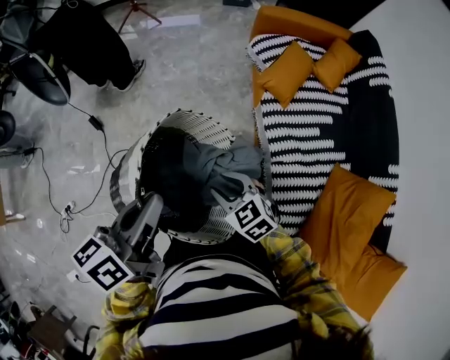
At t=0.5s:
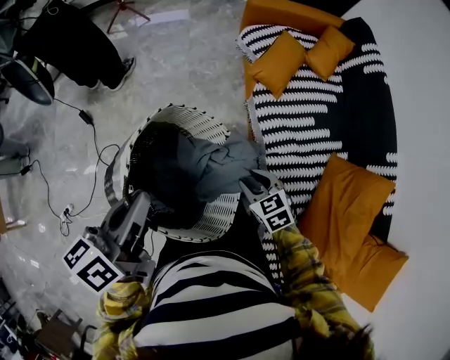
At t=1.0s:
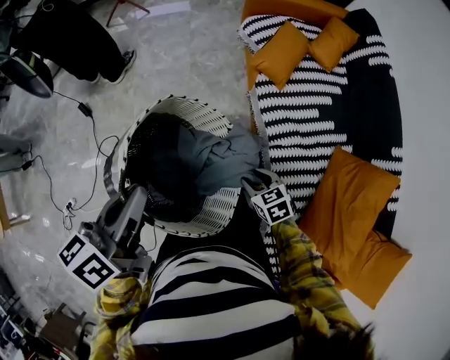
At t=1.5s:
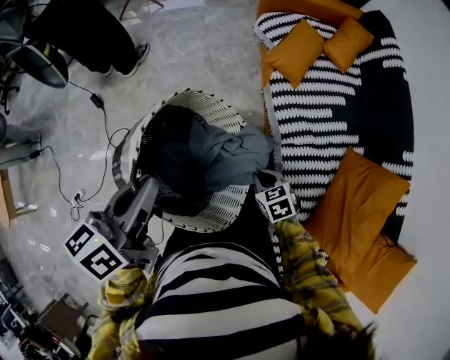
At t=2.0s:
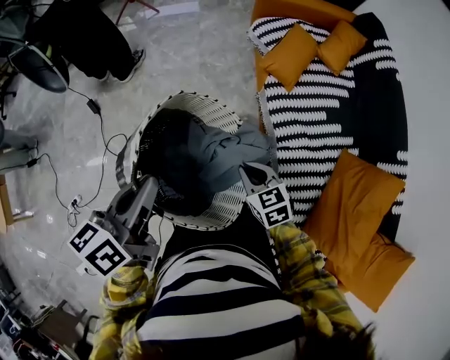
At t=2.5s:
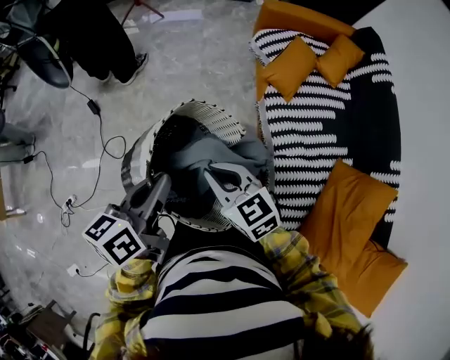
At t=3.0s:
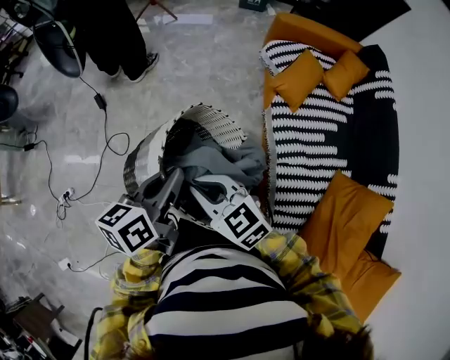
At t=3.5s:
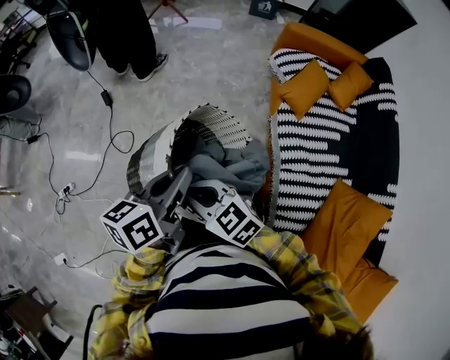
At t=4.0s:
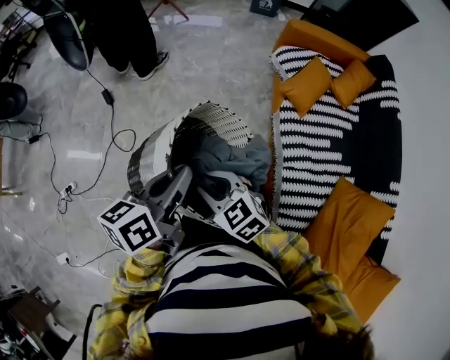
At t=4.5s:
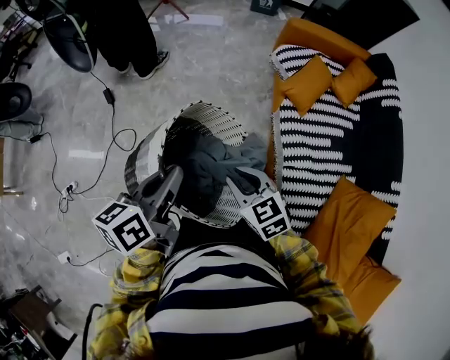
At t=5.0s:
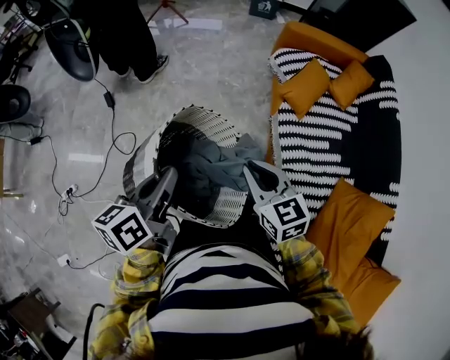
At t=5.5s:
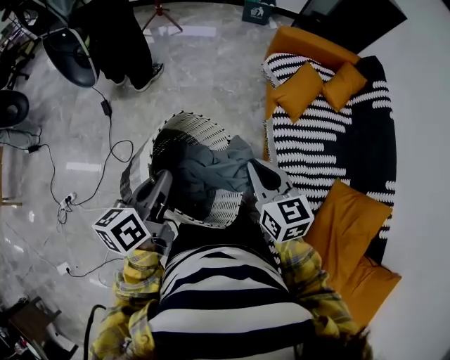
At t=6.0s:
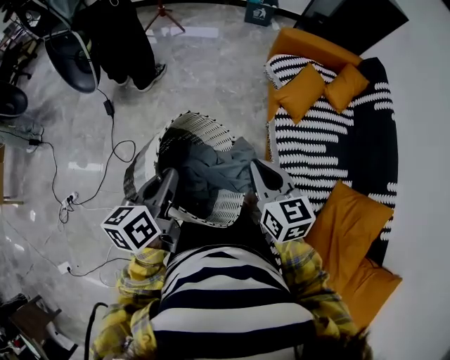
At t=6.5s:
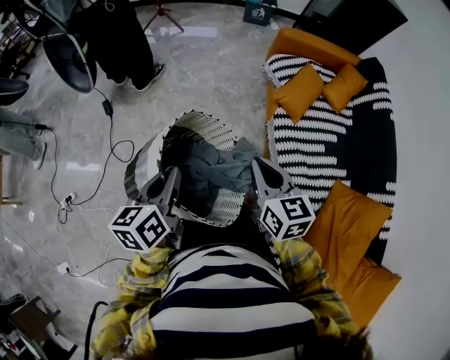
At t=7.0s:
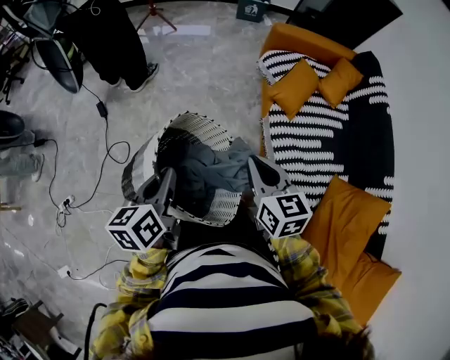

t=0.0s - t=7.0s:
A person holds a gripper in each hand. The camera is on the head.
t=0.0s - t=2.0s: The right gripper goes some 10 cm to the right.
t=2.0s - t=3.5s: The right gripper is displaced to the left and upward by approximately 25 cm, and swivels about 40 degrees.
t=3.5s - t=5.0s: The right gripper moves to the right, some 15 cm, and swivels approximately 30 degrees.
t=5.0s - t=7.0s: The grippers make only small movements.

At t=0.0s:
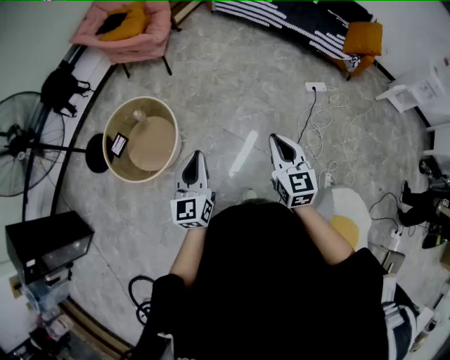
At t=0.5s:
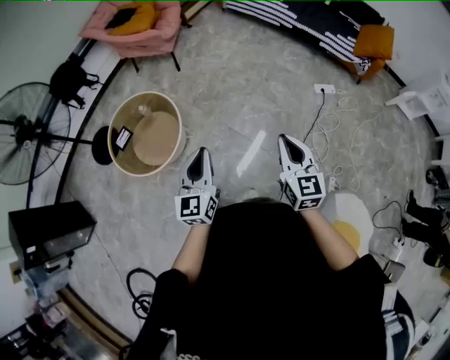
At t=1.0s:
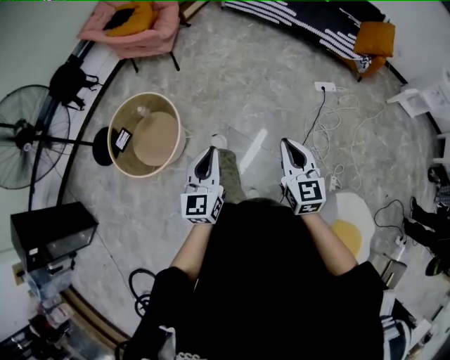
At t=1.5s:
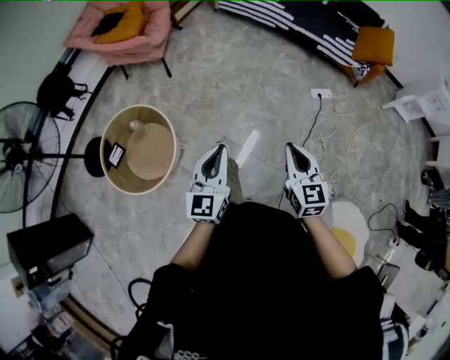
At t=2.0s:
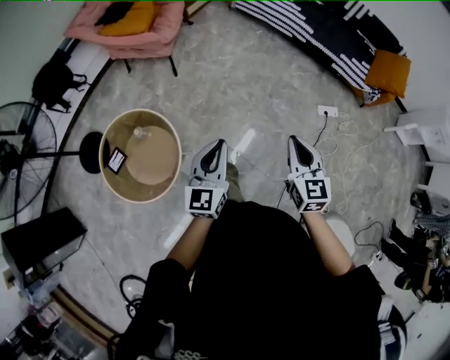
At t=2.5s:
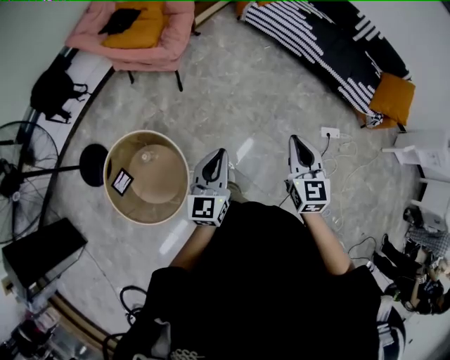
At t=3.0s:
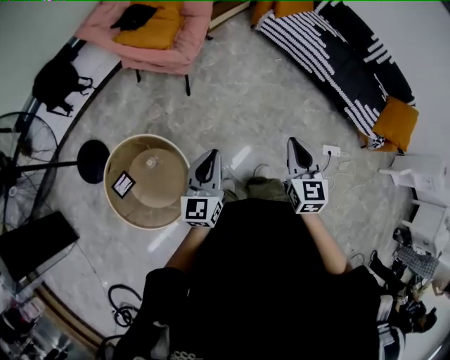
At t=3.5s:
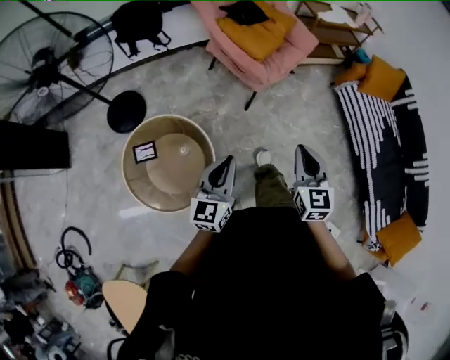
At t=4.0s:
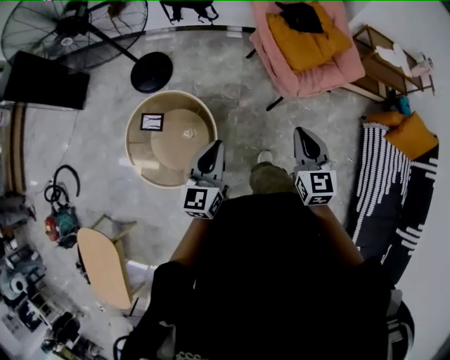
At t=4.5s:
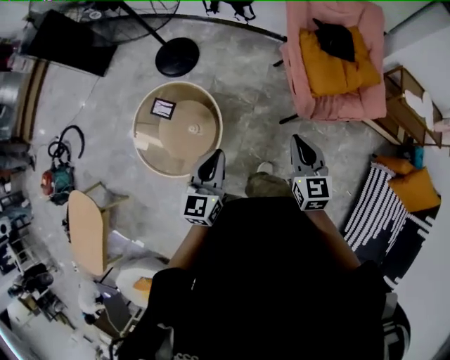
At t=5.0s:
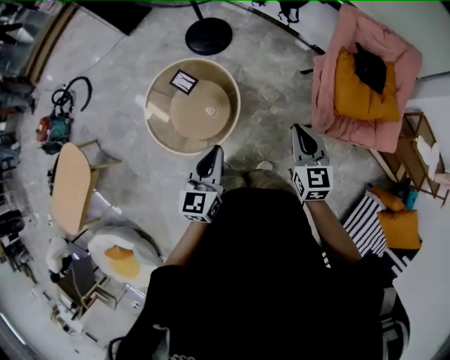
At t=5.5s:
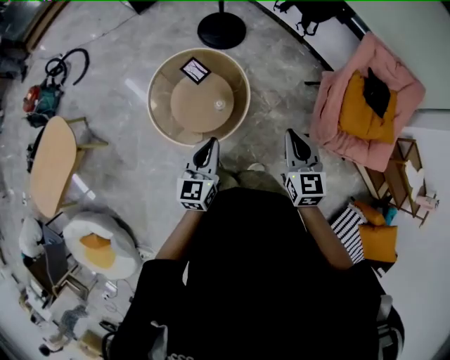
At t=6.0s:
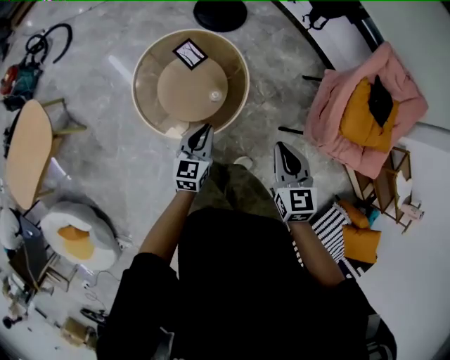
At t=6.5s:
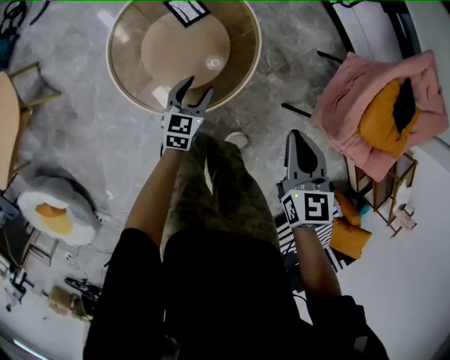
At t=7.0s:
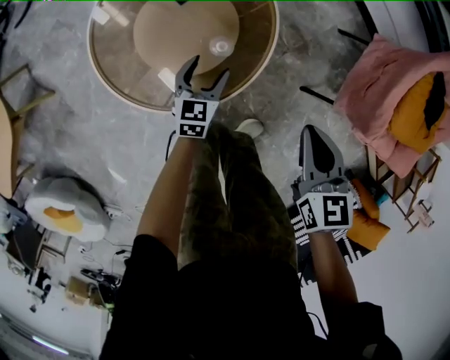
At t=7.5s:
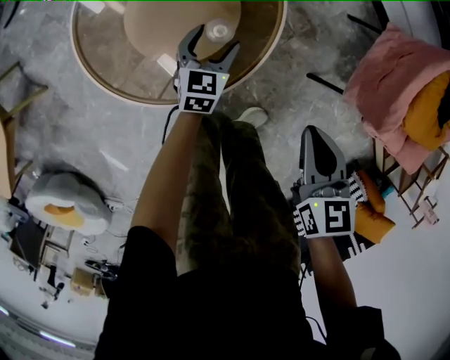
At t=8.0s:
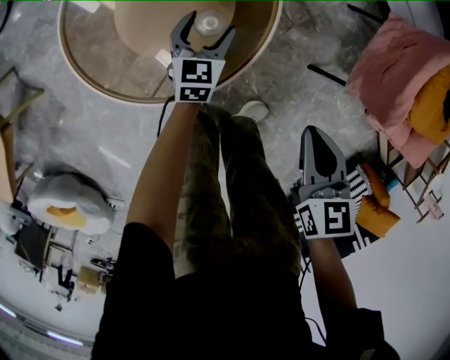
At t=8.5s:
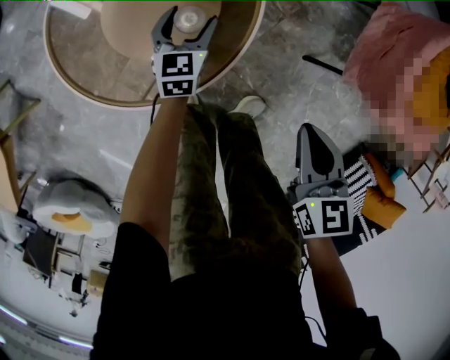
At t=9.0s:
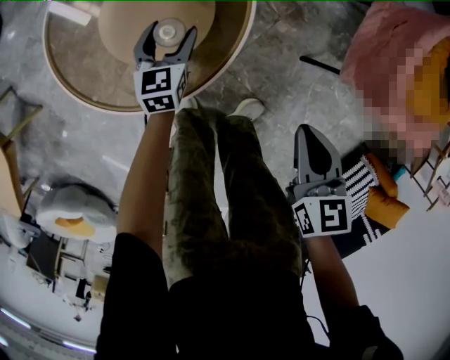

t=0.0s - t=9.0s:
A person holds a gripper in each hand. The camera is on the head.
t=0.0s - t=2.0s: The two grippers go roughly 30 cm forward.
t=2.0s - t=4.5s: The pair of grippers is taken about 70 cm. The right gripper swivels some 80 degrees, while the left gripper turns by approximately 70 degrees.
t=4.5s - t=7.0s: Both grippers travel together downward and to the left, some 50 cm. The right gripper turns by approximately 30 degrees; the left gripper changes its angle by about 30 degrees, and opens its fingers.
t=7.0s - t=9.0s: The left gripper heads forward and downward, covering about 10 cm. The right gripper goes about 10 cm downward and to the right.

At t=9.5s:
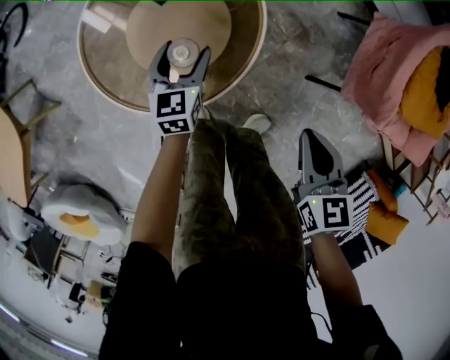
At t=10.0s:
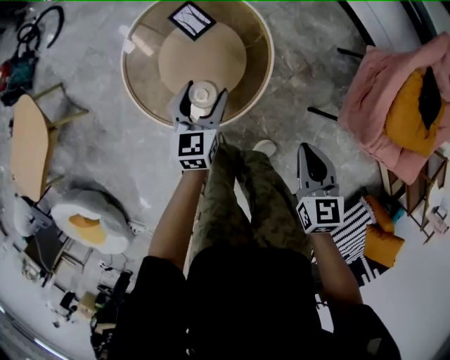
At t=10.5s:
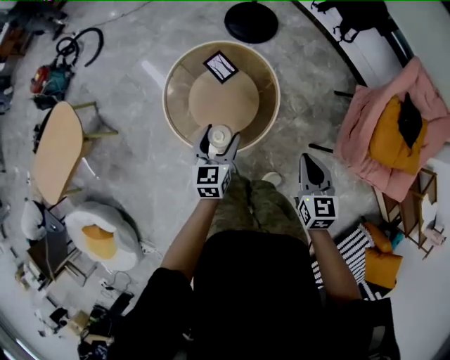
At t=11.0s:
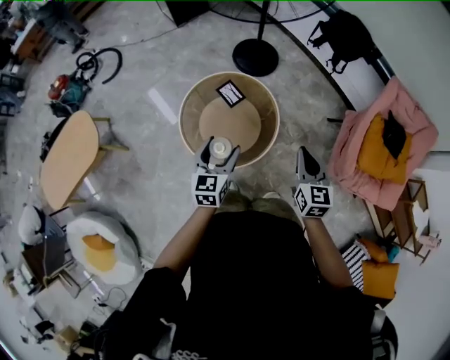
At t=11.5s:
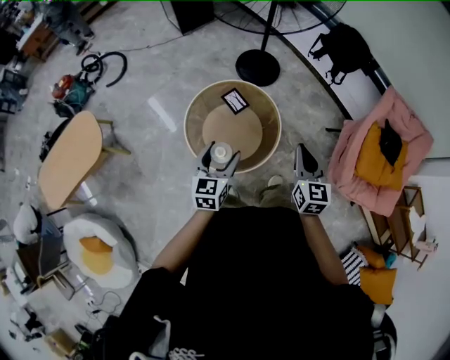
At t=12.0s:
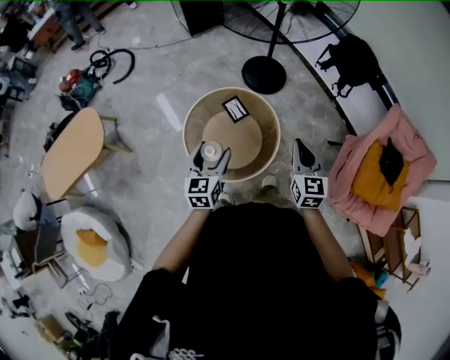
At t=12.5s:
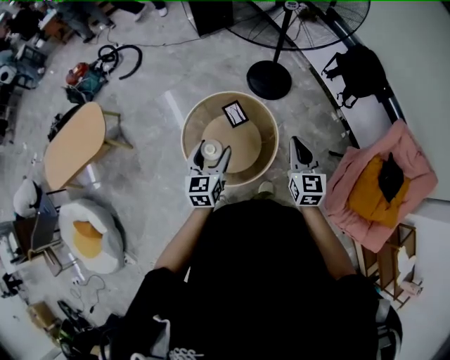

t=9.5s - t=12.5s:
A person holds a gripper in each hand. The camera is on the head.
t=9.5s - t=11.0s: The two grippers go roughly 40 cm upward. The right gripper changes its angle by about 20 degrees.
t=11.0s - t=12.5s: The right gripper travels forward by approximately 15 cm, while the left gripper travels forward by some 5 cm.

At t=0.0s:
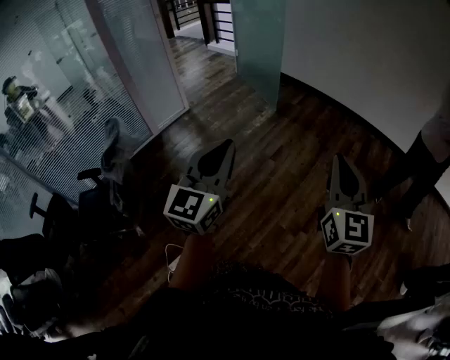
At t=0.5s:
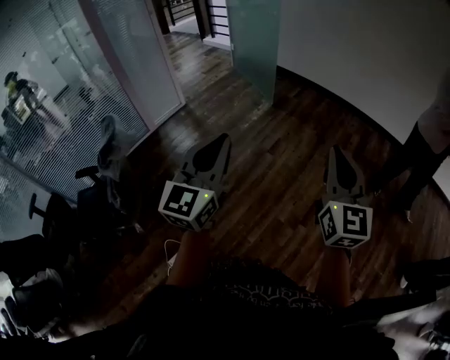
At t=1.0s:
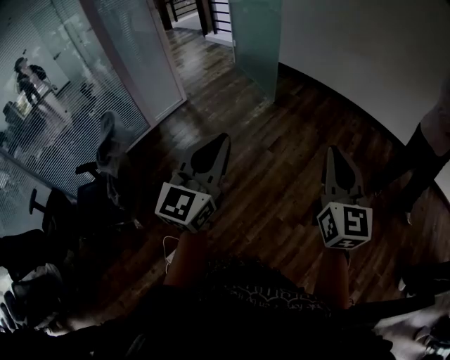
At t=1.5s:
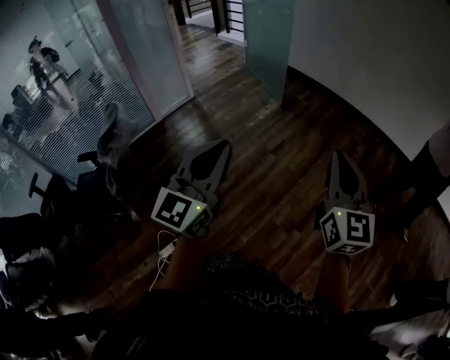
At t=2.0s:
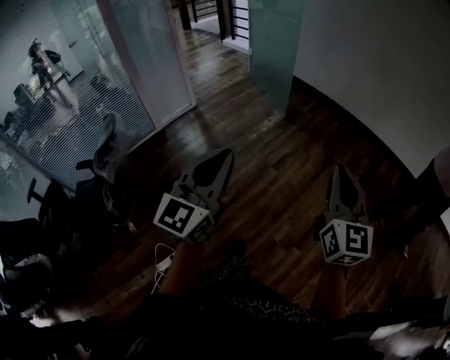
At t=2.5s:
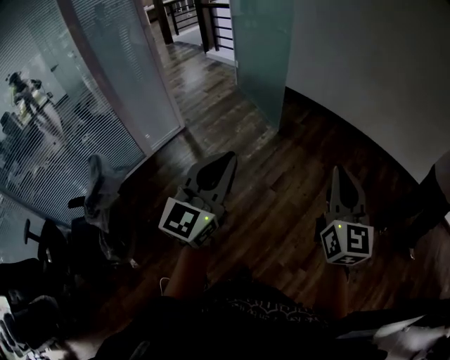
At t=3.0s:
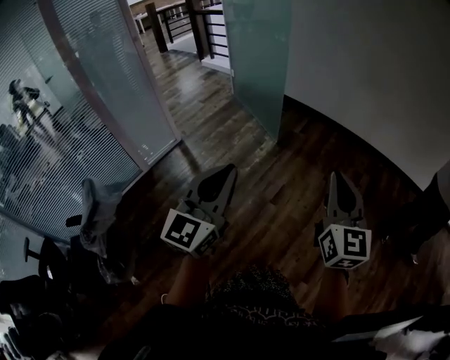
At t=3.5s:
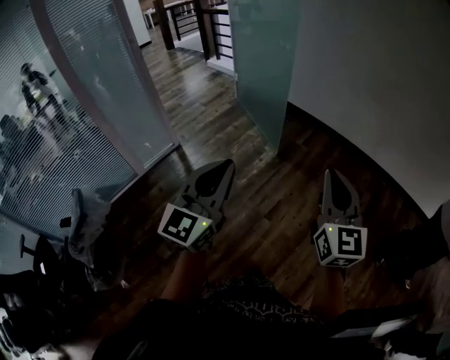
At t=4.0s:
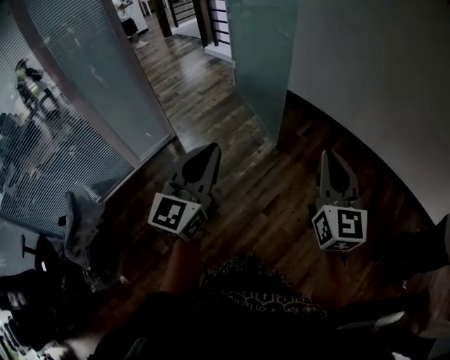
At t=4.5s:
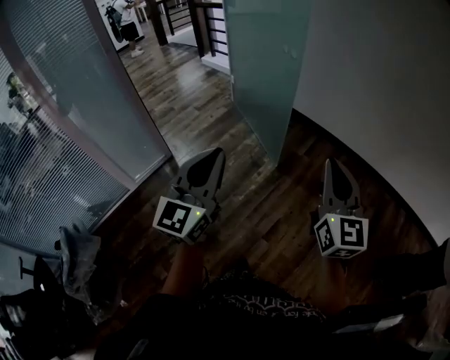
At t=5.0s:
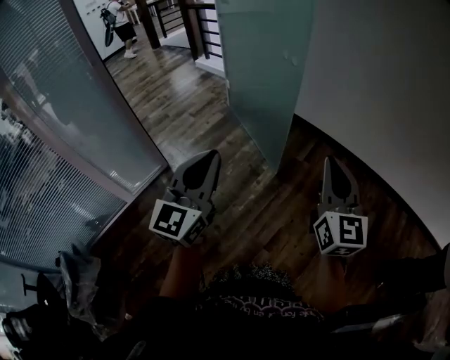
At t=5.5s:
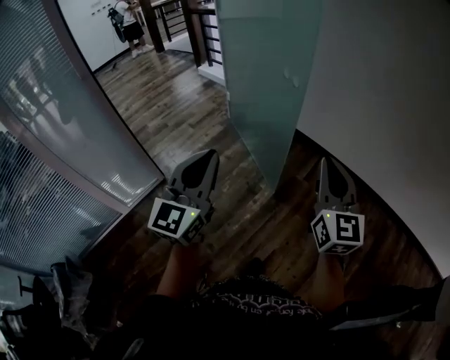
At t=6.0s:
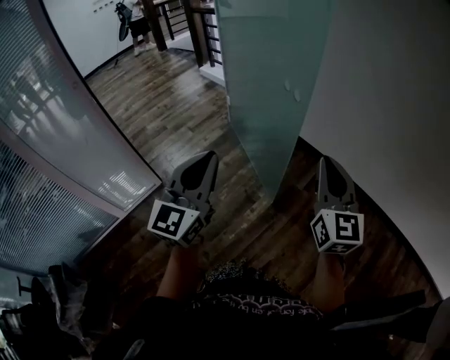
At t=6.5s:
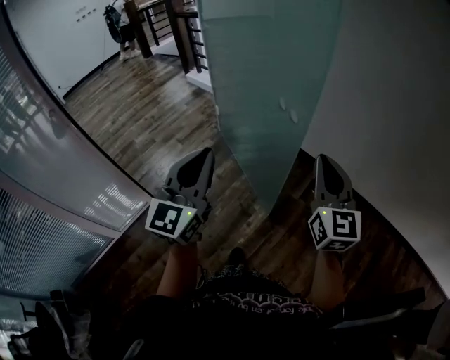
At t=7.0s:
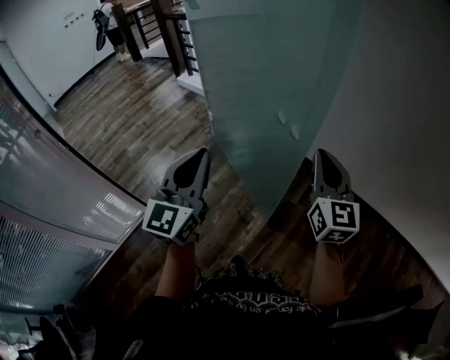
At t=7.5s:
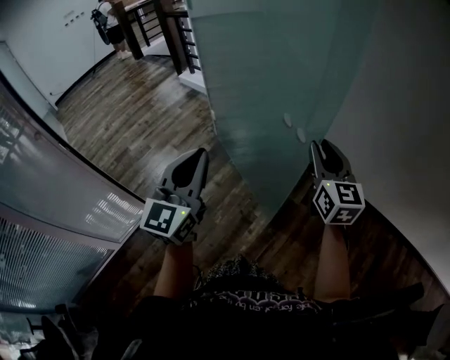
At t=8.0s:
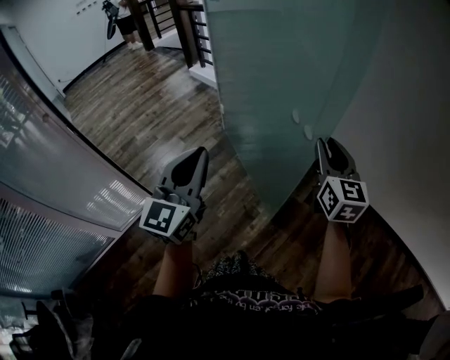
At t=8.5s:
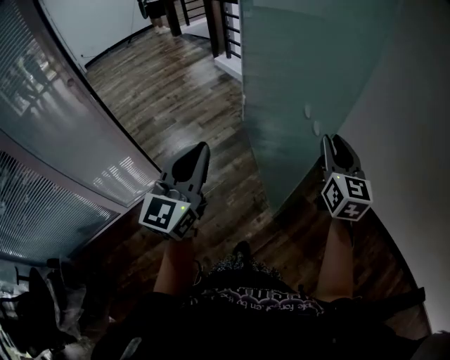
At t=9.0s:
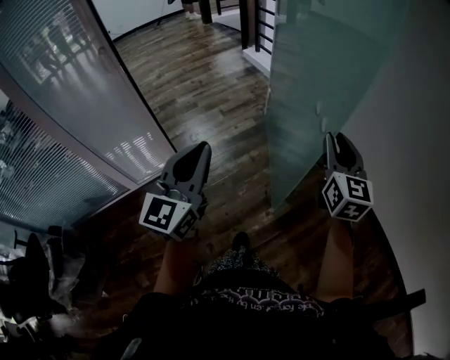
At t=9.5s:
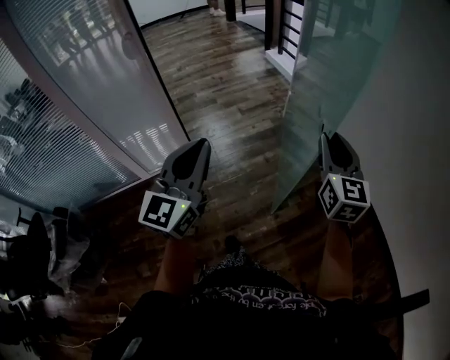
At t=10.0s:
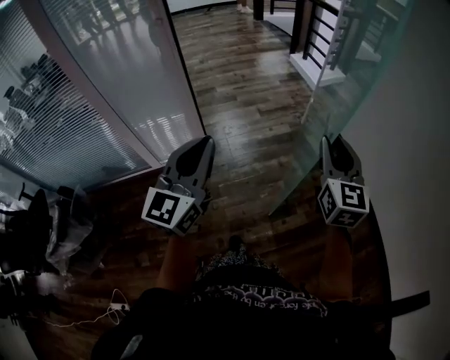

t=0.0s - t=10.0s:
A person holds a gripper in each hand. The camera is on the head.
t=0.0s - t=2.0s: The left gripper travels forward by roughly 5 cm. The right gripper shifts about 10 cm forward.
t=2.0s - t=4.0s: Both grippers are carried forward, approximately 50 cm.
t=4.0s - t=6.0s: The pair of grippers is taken forward, approximately 50 cm.
t=6.0s - t=8.0s: The left gripper goes approximately 20 cm forward and to the left, while the right gripper shifts roughly 25 cm forward.
t=8.0s - t=10.0s: The right gripper moves approximately 25 cm, and rotates roughly 30 degrees, while the left gripper shifts by approximately 25 cm, and changes its angle by approximately 30 degrees.
